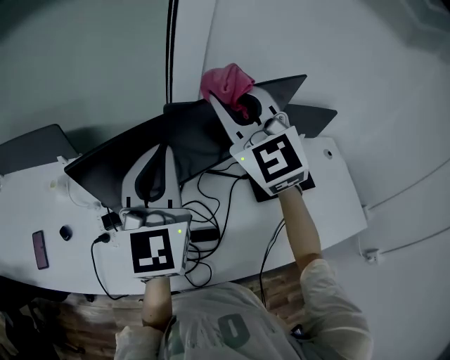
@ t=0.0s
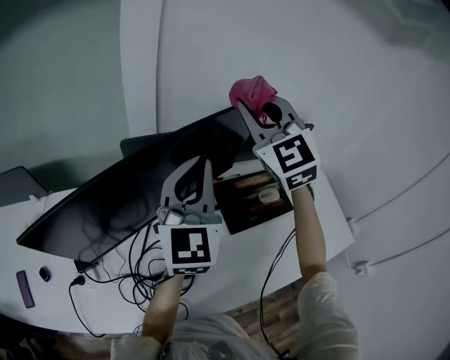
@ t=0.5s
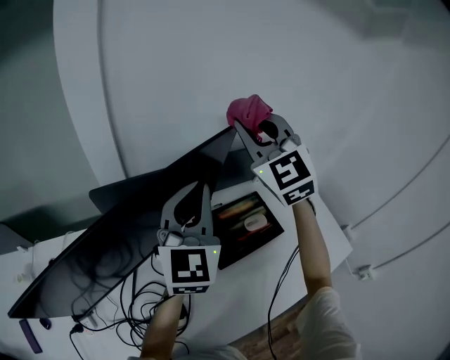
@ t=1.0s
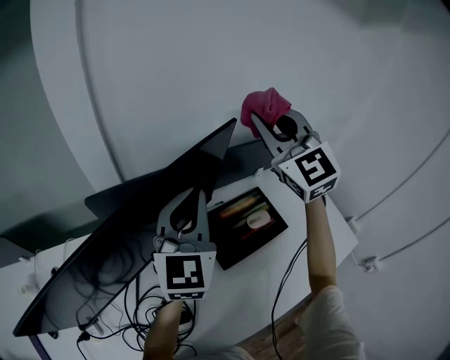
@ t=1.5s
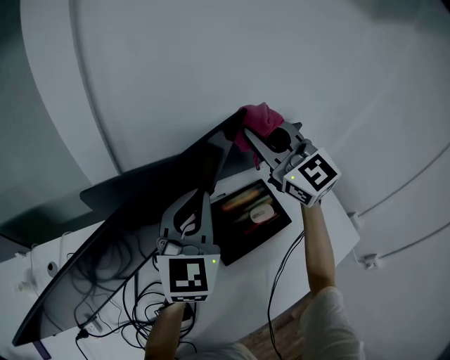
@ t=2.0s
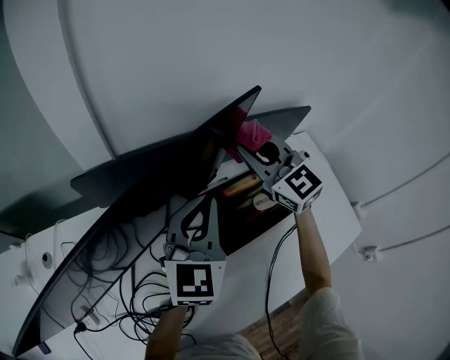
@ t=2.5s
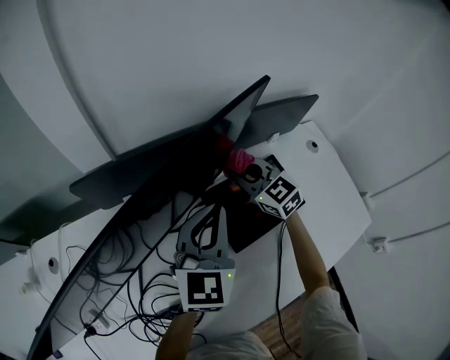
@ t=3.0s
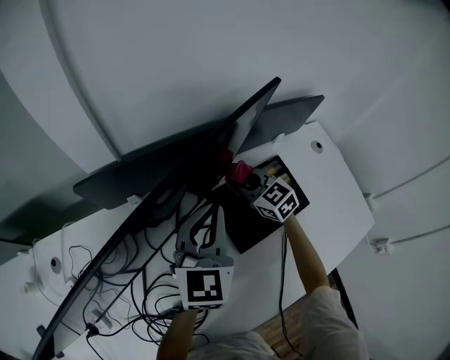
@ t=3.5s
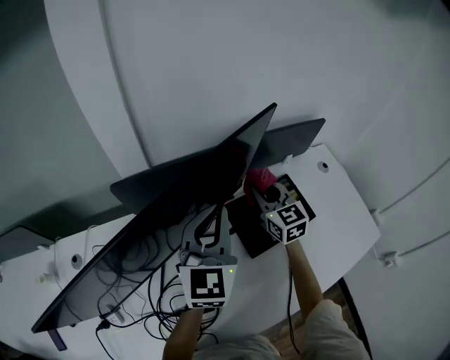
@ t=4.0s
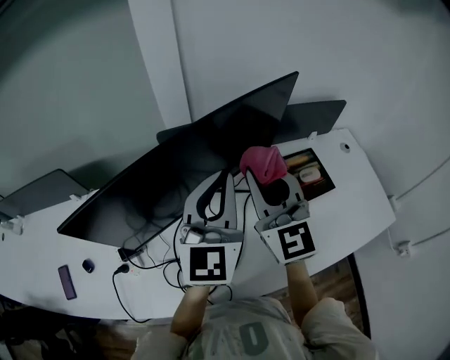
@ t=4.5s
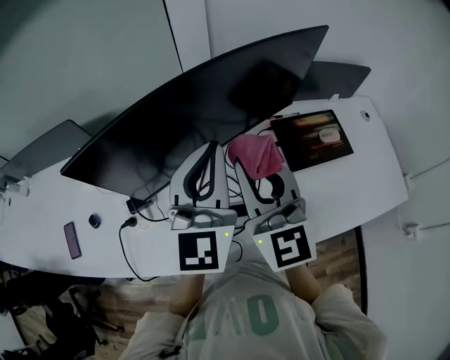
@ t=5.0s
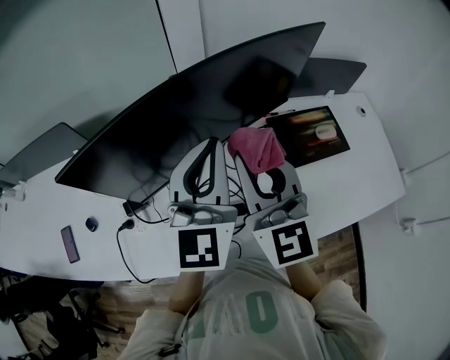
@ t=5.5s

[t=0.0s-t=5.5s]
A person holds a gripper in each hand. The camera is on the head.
t=0.0s to t=2.0s: The grippers both shift to the right and forward by roughly 30 cm. The left gripper rotates some 30 degrees.
t=2.0s to t=3.5s: The left gripper moves downward, some 10 cm; the right gripper shifts about 35 cm downward, and turns by some 40 degrees.
t=3.5s to t=5.5s: The right gripper is displaced backward, upward and to the left by roughly 50 cm, and points its fingers about 30 degrees further upward, while the left gripper shifts approximately 30 cm to the left, backward and upward, and turns by roughly 20 degrees.

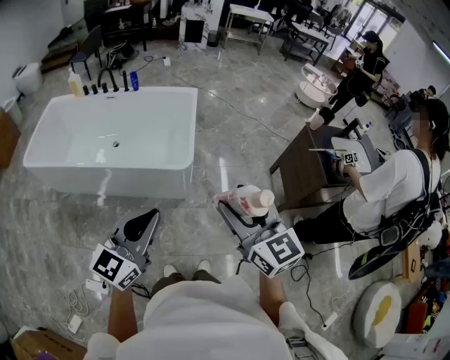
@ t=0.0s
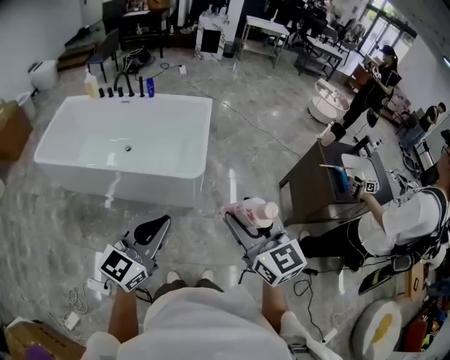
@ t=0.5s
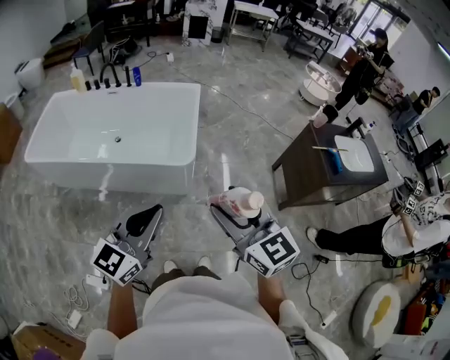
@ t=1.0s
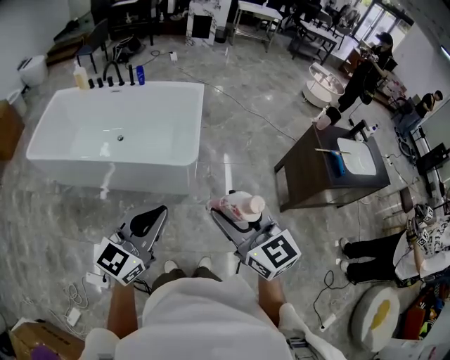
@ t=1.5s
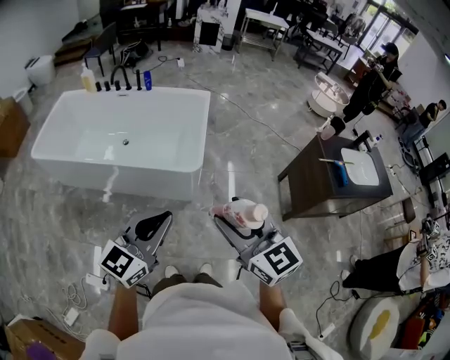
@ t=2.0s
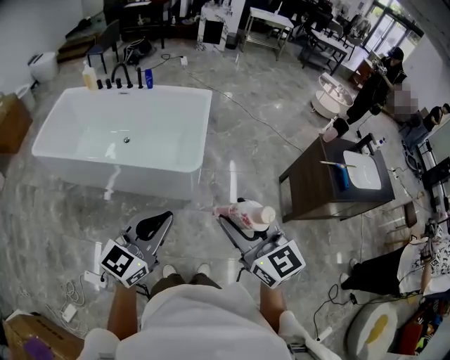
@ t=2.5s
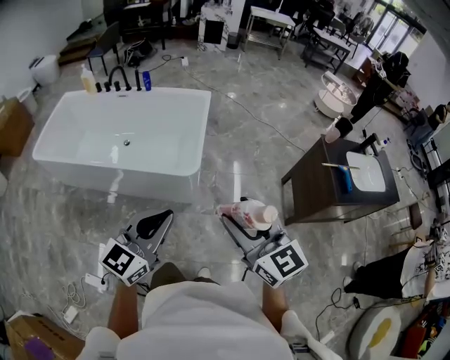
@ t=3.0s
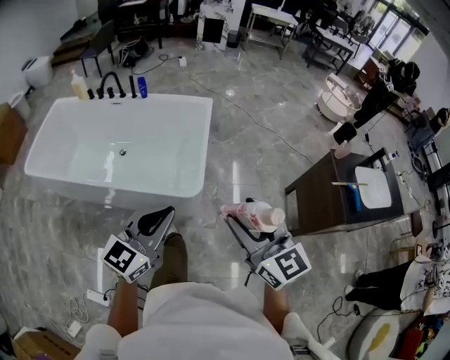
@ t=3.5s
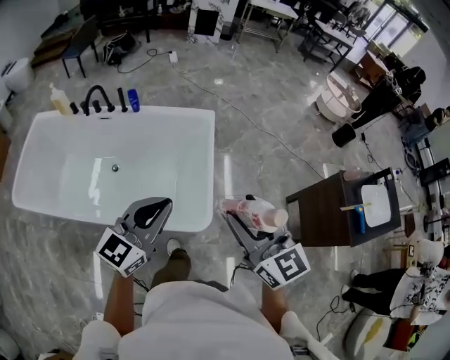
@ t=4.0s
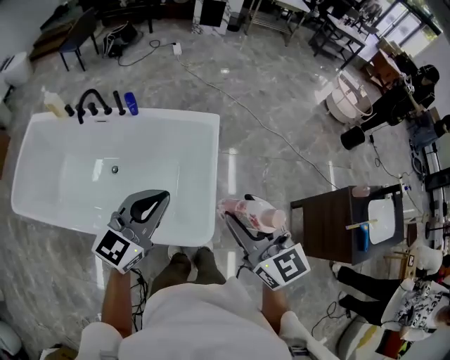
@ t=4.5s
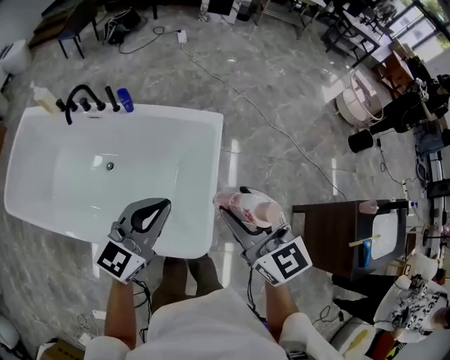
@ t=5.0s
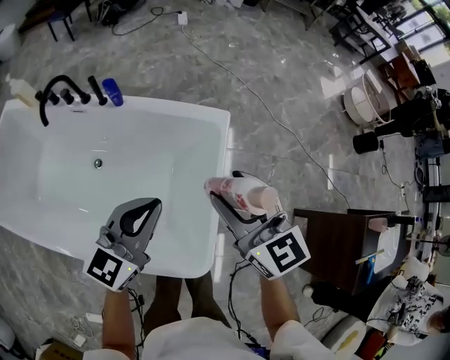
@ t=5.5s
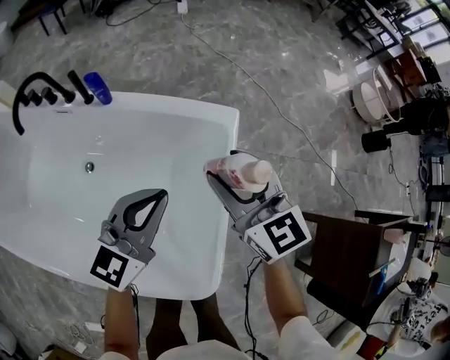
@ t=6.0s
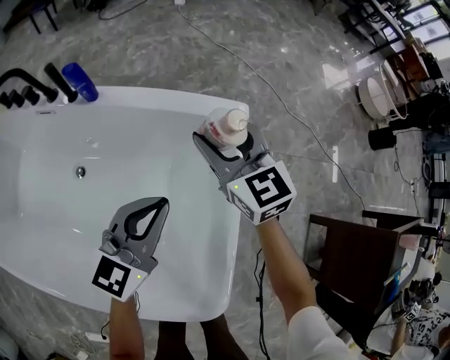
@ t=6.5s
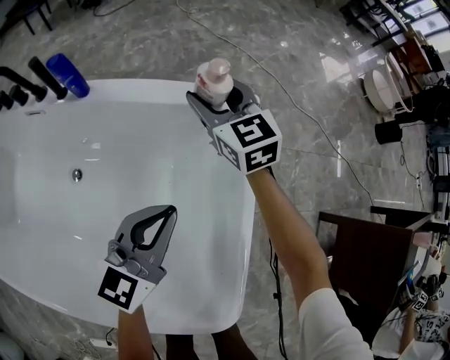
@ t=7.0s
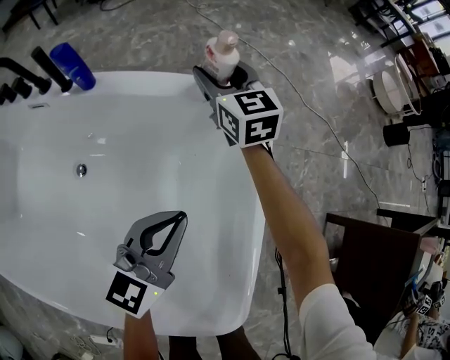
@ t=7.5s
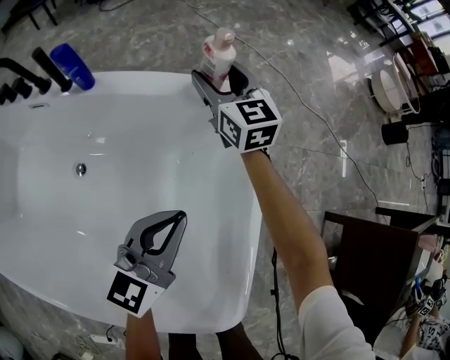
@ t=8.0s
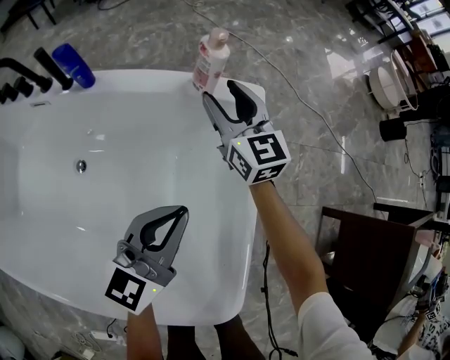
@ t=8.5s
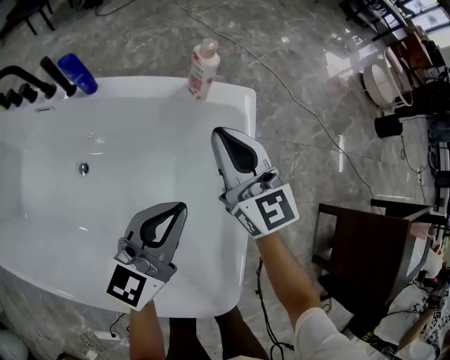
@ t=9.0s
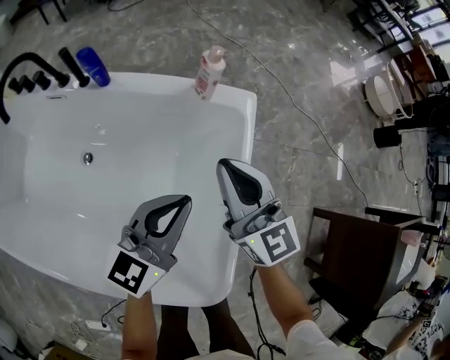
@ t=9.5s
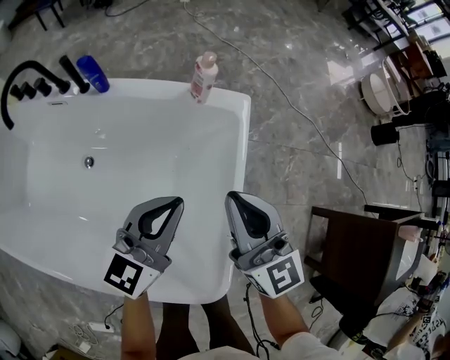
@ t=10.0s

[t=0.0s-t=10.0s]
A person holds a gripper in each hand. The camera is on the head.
t=0.0s to t=2.0s: The grippers stay close to where they were, moving slightly.
t=2.0s to t=4.0s: Both grippers are carried forward, roughly 50 cm.
t=4.0s to t=6.0s: Both grippers travel together forward and downward, roughly 50 cm.
t=6.0s to t=8.0s: The right gripper heads forward and downward, covering roughly 30 cm, while the left gripper moves downward, some 20 cm.
t=8.0s to t=10.0s: The left gripper shifts roughly 10 cm upward; the right gripper moves backward and upward, some 35 cm, and closes.

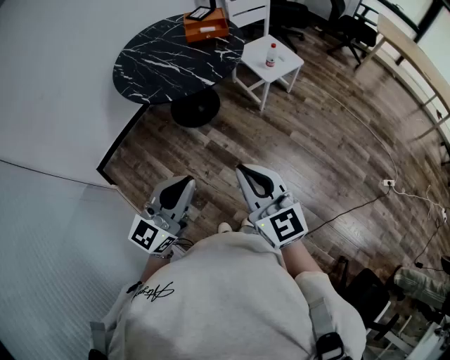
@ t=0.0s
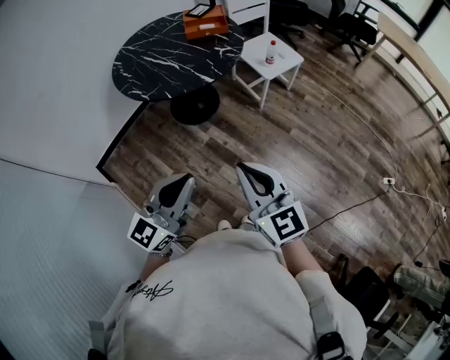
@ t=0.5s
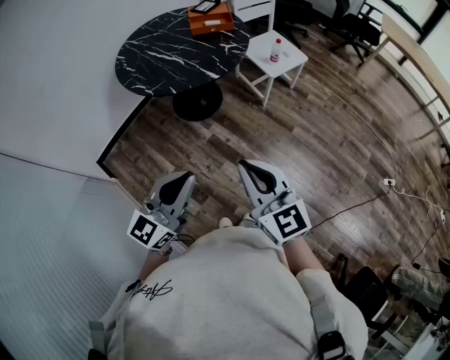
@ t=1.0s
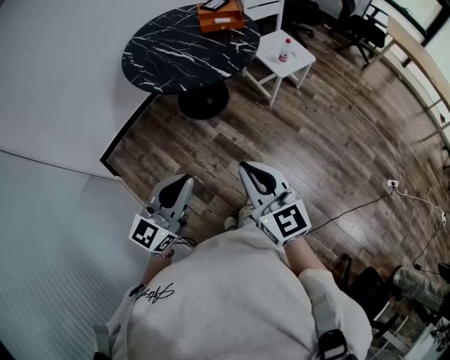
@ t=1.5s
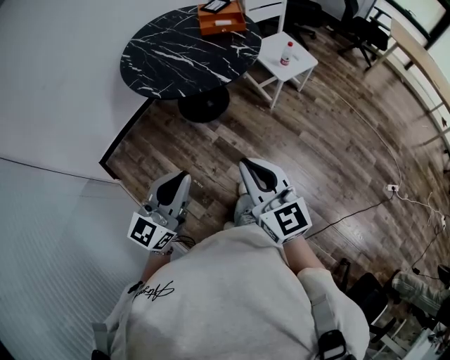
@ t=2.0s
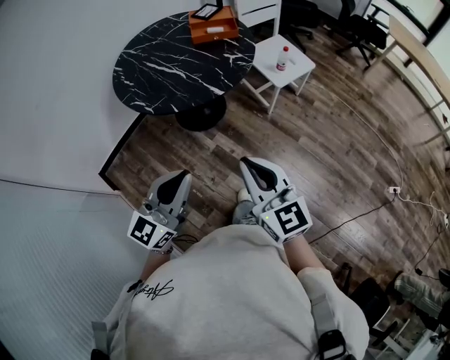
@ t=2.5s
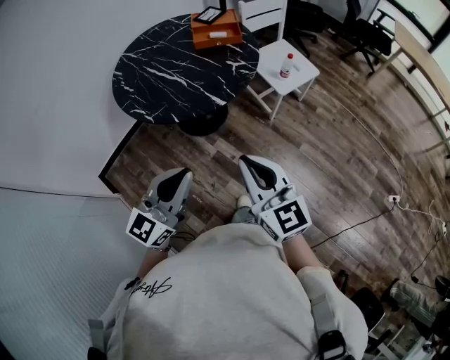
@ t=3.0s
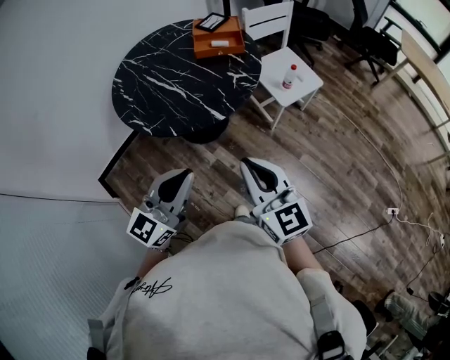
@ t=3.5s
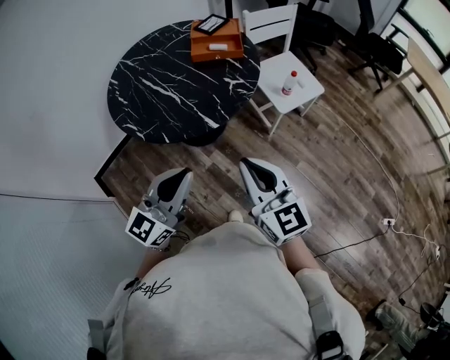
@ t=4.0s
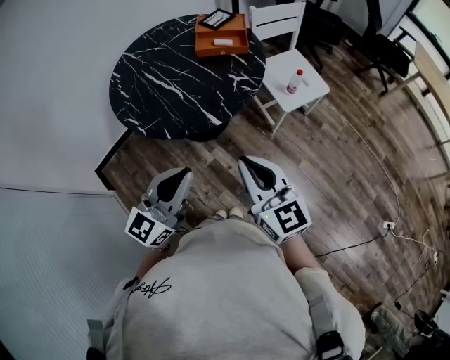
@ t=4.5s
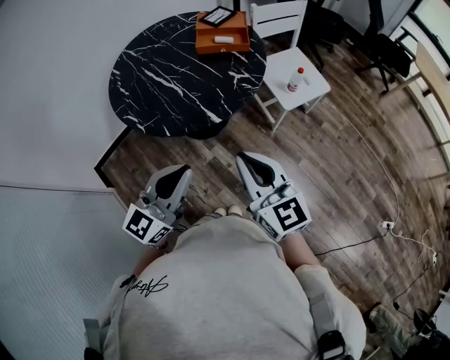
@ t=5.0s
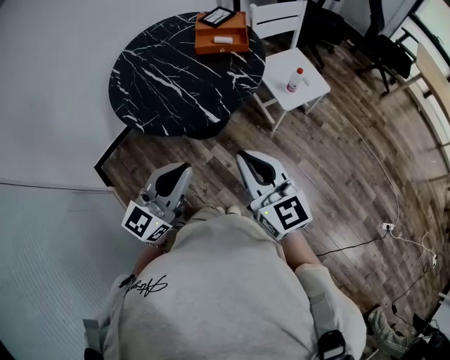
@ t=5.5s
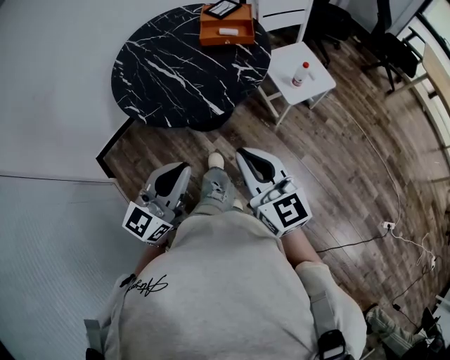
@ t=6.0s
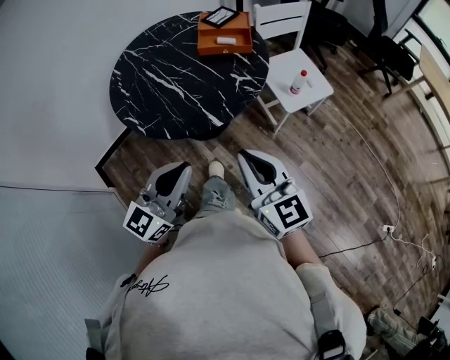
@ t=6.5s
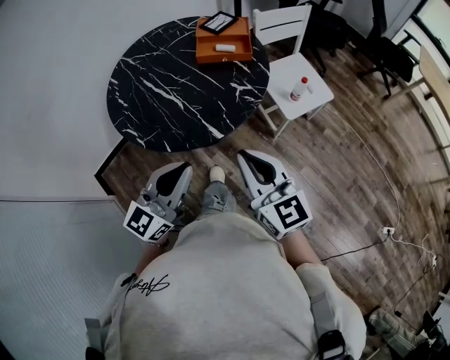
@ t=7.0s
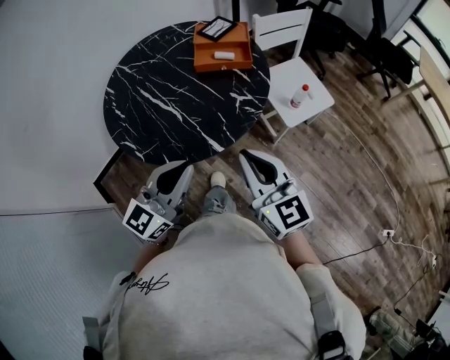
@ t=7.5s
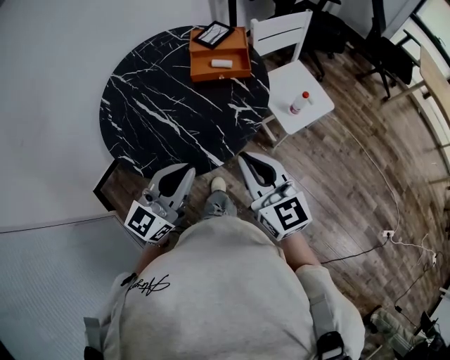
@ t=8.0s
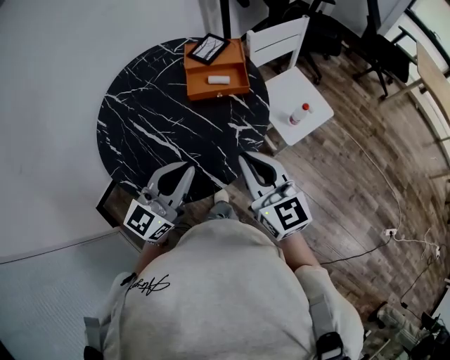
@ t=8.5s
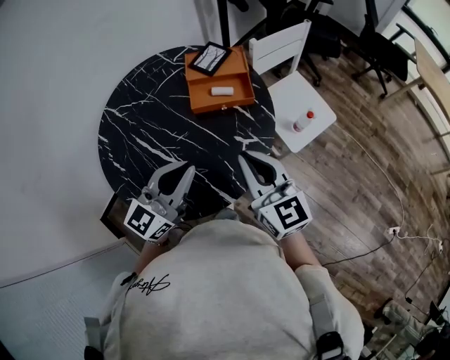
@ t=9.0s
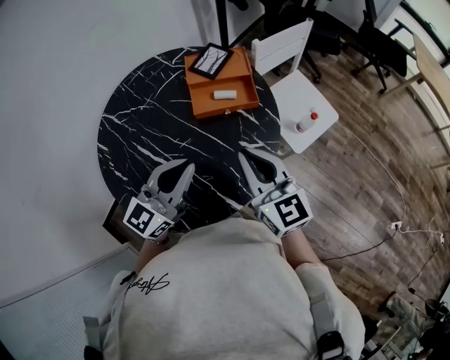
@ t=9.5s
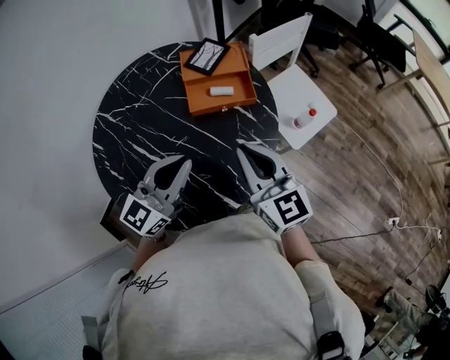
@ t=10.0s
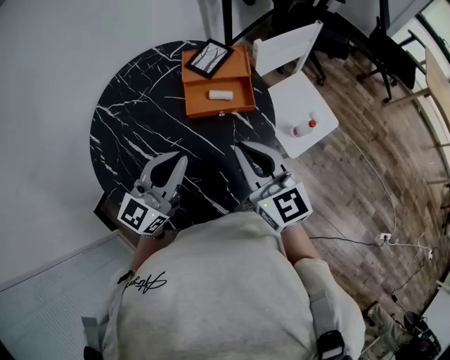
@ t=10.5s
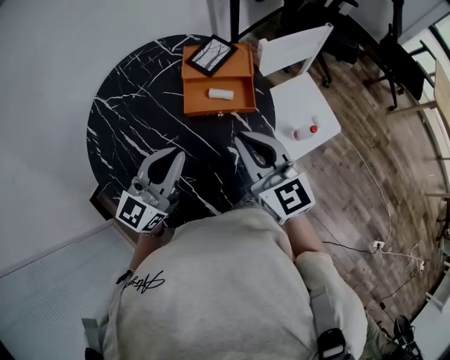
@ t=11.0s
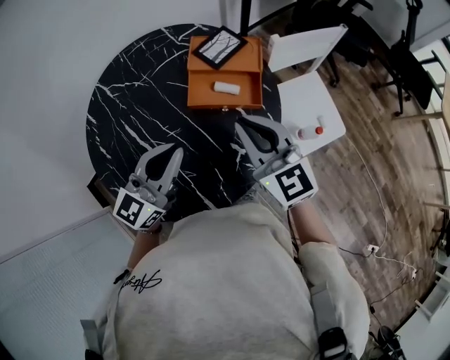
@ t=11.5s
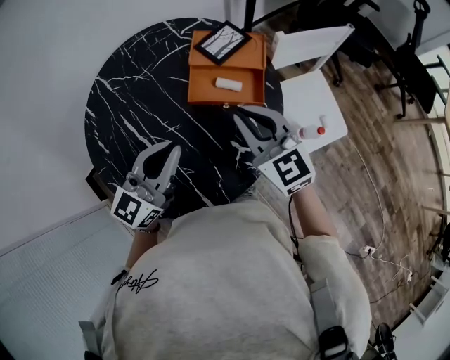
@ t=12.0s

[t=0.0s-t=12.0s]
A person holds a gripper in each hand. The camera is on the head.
t=0.0s to t=2.0s: Both grippers travel together to the left, roughly 5 cm.
t=2.0s to t=4.0s: The grippers both shift forward by about 20 cm.
t=4.0s to t=6.0s: The grippers move only a little.
t=6.0s to t=8.0s: Both grippers travel together forward, some 20 cm.
t=8.0s to t=10.0s: Both grippers travel together forward, some 20 cm.
t=10.0s to t=12.0s: The right gripper moves forward, some 10 cm, and turns by some 30 degrees. The left gripper shifts approximately 5 cm forward.
